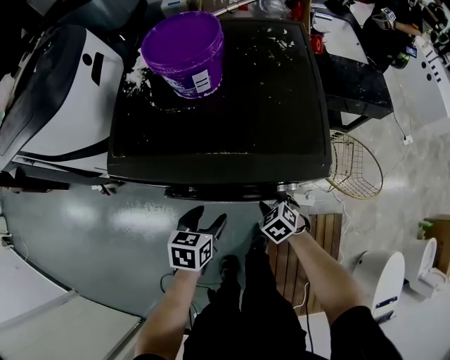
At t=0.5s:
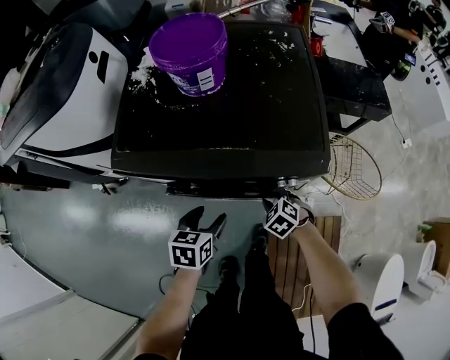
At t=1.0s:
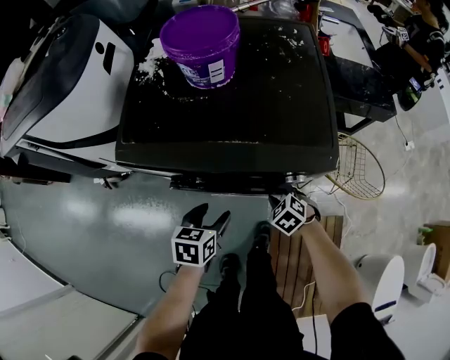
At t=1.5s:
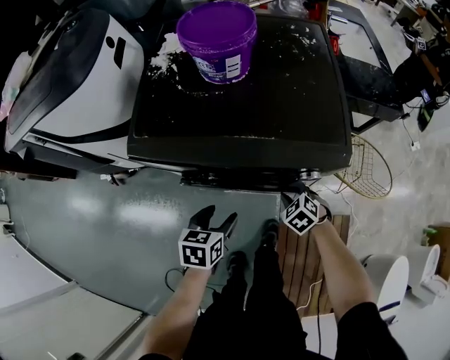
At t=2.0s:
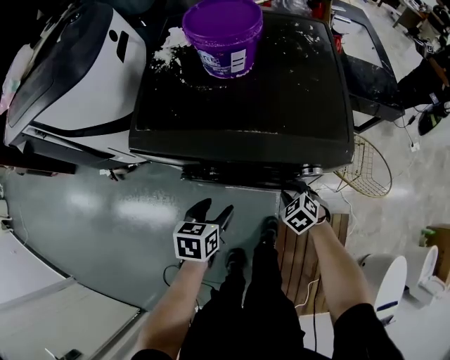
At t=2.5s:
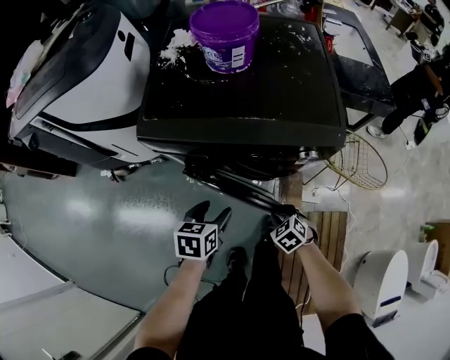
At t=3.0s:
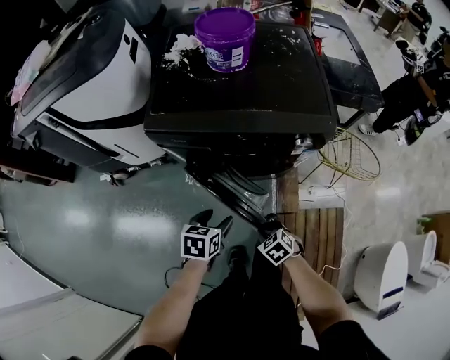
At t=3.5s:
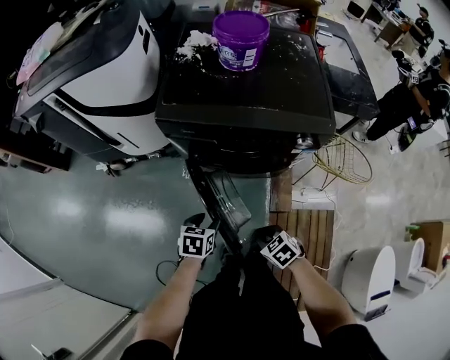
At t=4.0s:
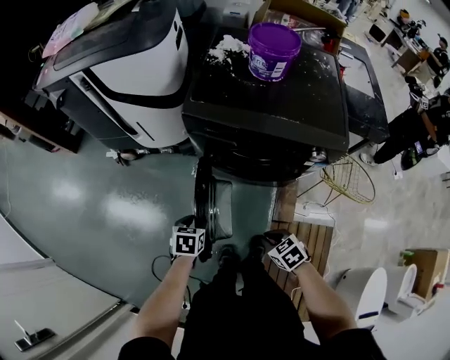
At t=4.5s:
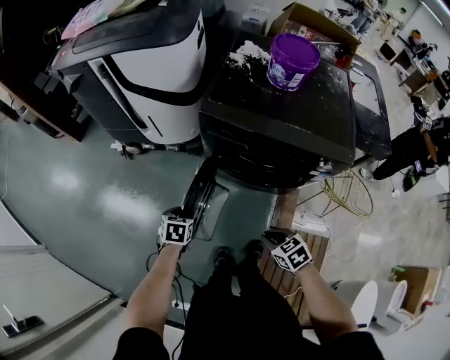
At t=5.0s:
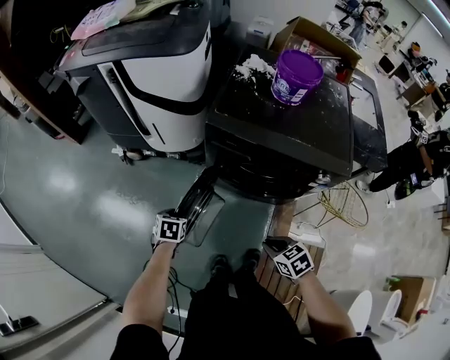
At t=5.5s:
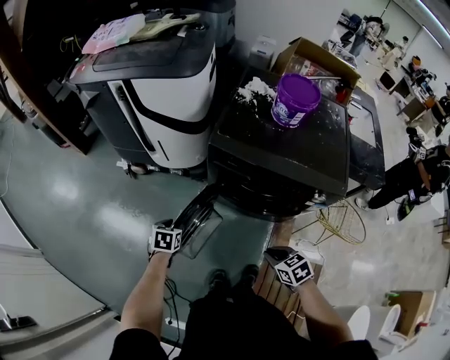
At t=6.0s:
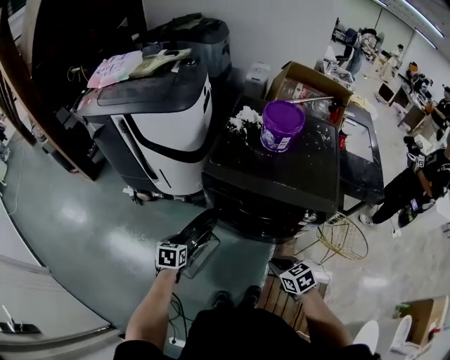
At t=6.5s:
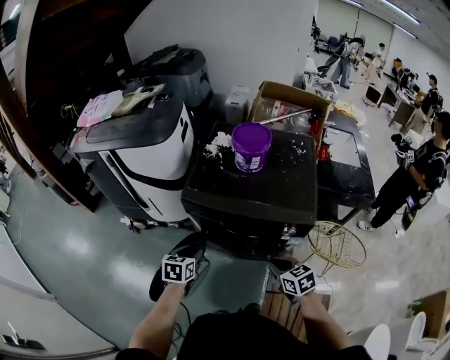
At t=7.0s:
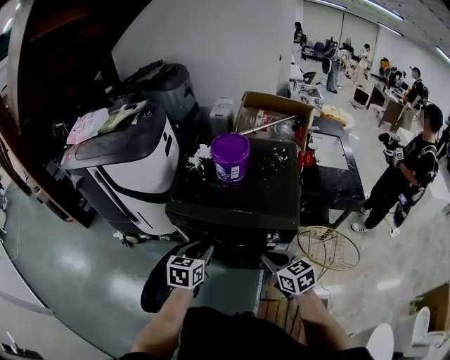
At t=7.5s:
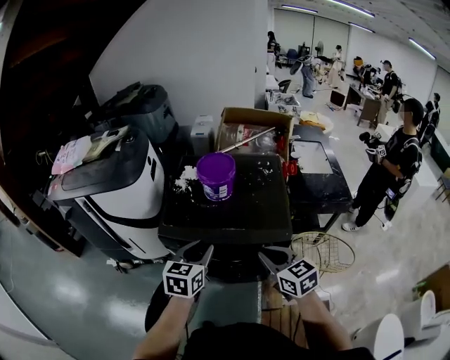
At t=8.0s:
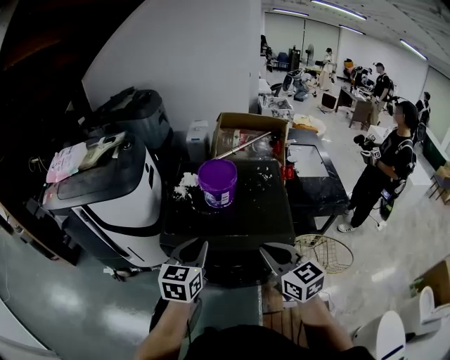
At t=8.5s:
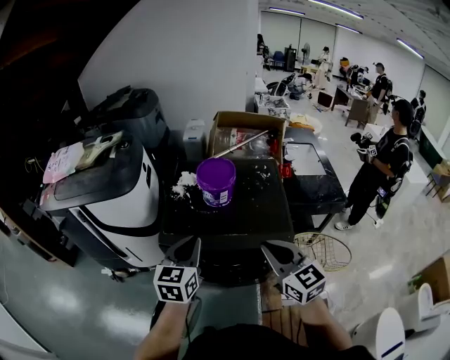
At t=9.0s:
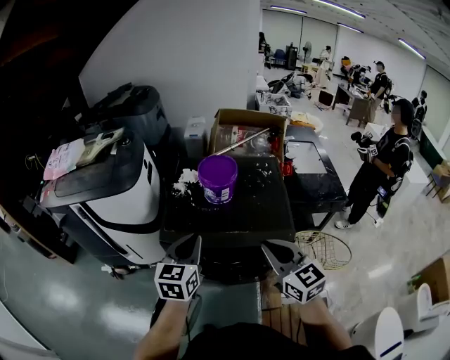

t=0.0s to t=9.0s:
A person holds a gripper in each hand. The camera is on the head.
t=0.0s to t=2.0s: The left gripper changes place by some 5 cm.
t=2.0s to t=4.5s: The right gripper ends up roughly 25 cm from where it was, and swivels roughly 20 degrees. The left gripper shifts by some 25 cm.
t=4.5s to t=7.0s: The right gripper goes roughly 30 cm upward, to the right and forward, and changes its angle by some 30 degrees; the left gripper is displaced to the right and upward by approximately 35 cm, and turns by roughly 30 degrees.
t=7.0s to t=9.0s: The left gripper goes about 15 cm upward and forward, and swivels some 20 degrees. Meanwhile the right gripper shifts about 15 cm upward, and rotates some 30 degrees.

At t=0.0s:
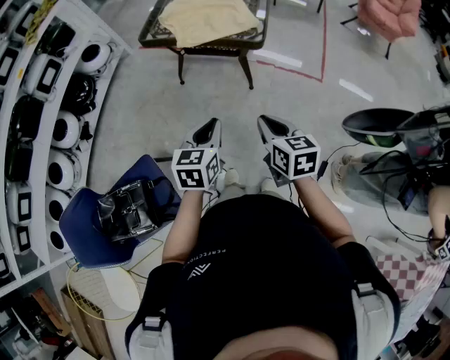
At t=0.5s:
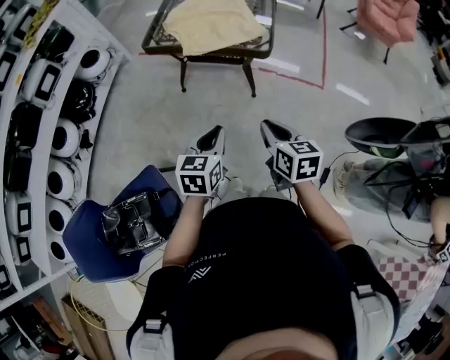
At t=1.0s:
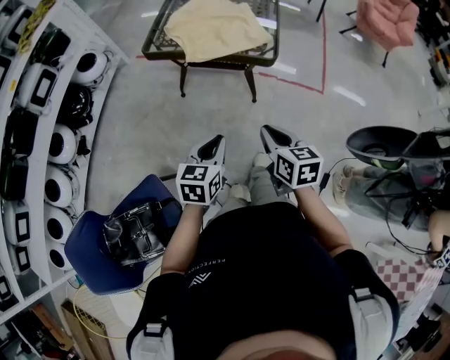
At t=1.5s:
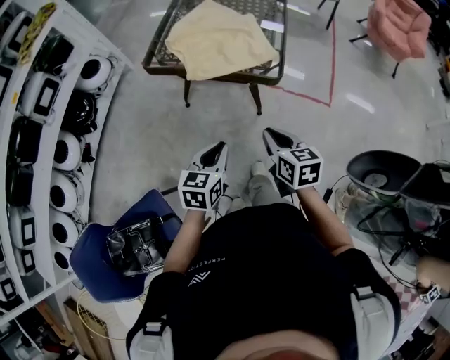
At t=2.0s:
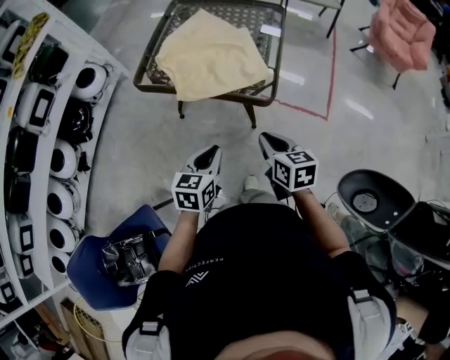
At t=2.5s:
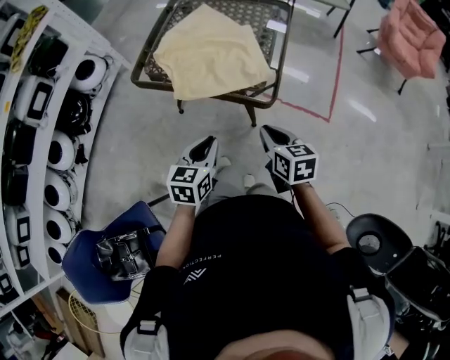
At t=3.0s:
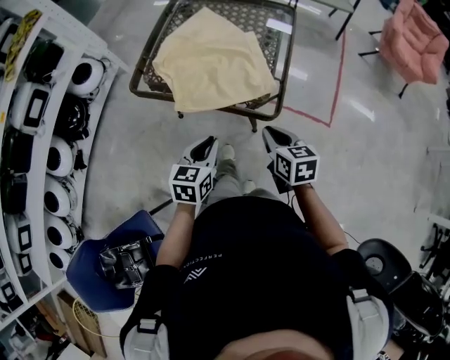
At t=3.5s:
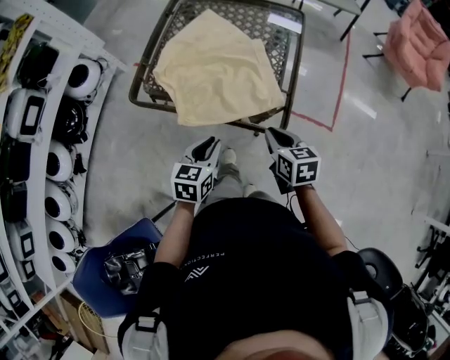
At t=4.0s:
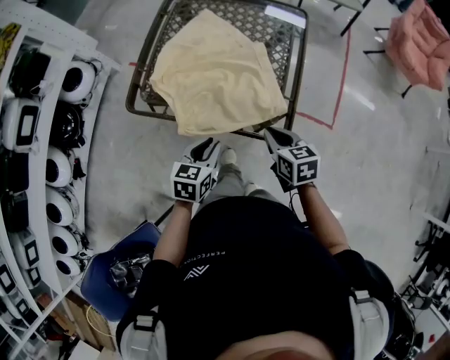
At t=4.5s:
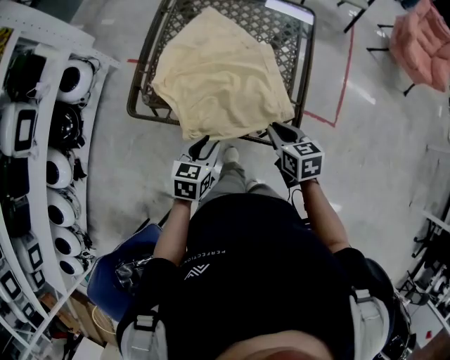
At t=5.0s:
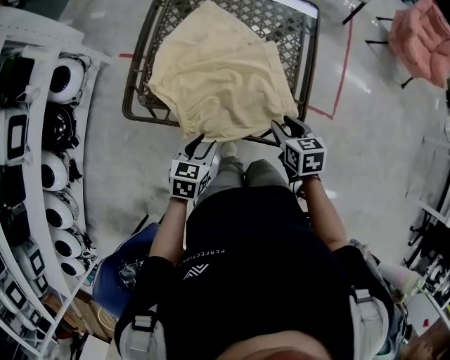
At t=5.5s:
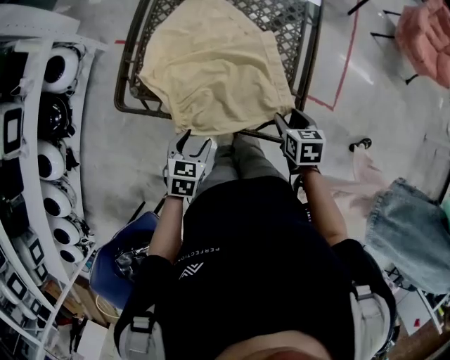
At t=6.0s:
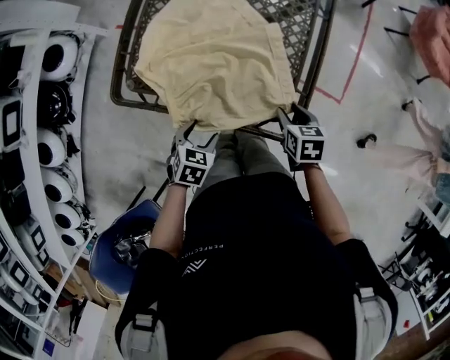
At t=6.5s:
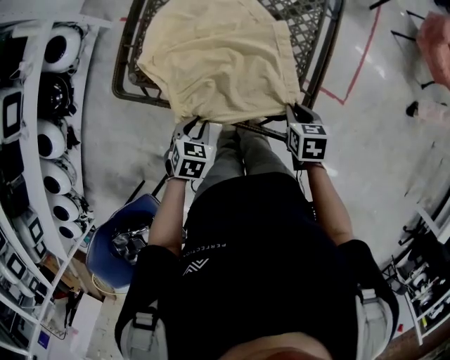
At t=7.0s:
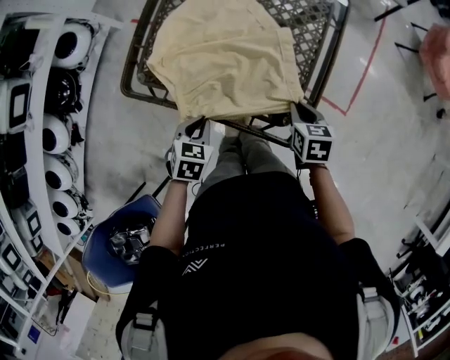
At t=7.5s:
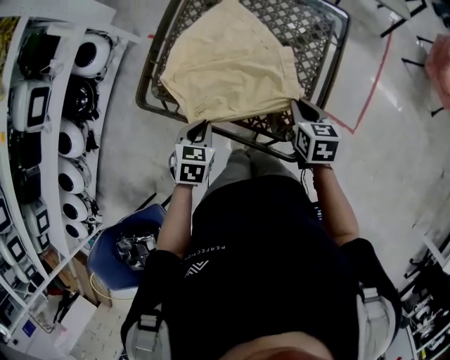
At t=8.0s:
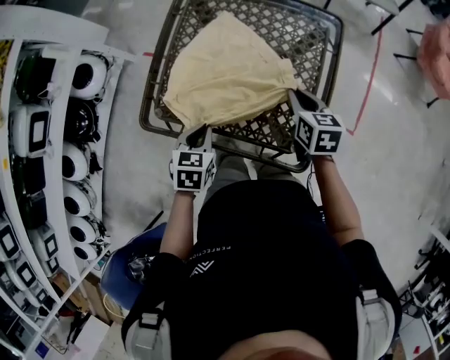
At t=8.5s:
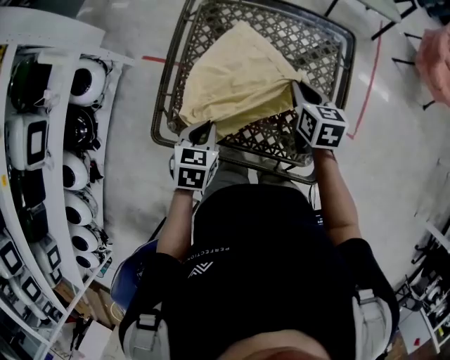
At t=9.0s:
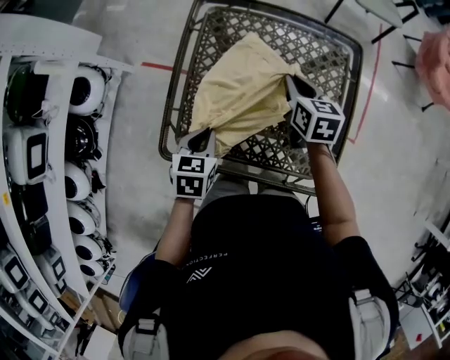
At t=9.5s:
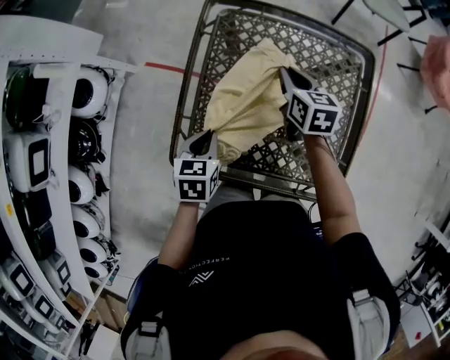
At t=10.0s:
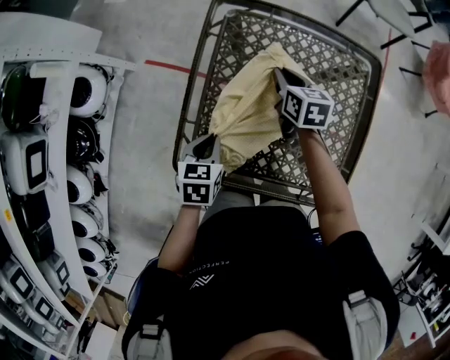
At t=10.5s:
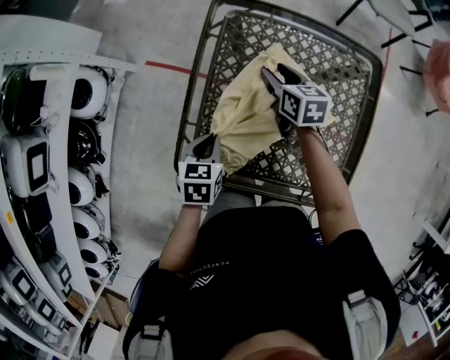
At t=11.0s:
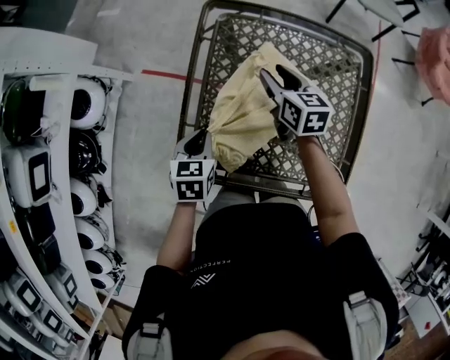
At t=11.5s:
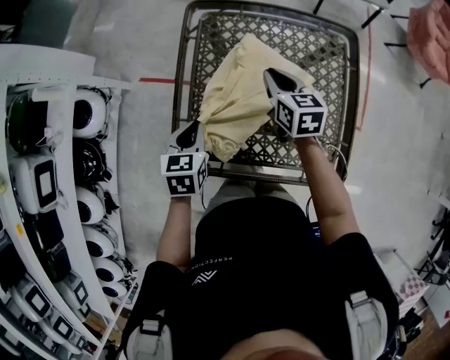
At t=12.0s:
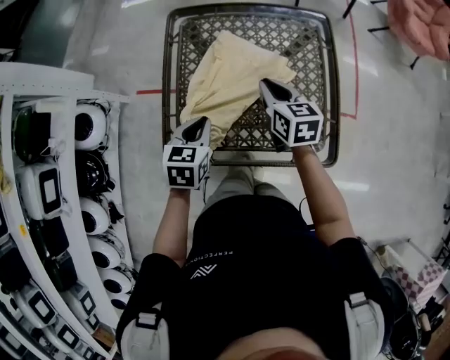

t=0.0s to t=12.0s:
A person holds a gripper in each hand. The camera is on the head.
t=0.0s to t=2.0s: Both grippers move forward, approximately 20 cm.
t=2.0s to t=4.0s: Both grippers travel together forward, roughly 20 cm.
t=4.0s to t=6.0s: The left gripper moves downward, about 10 cm, turns by some 30 degrees, and opens. The right gripper moves downward, forward and to the right, about 15 cm, and opens.
t=6.0s to t=8.0s: The two grippers go some 15 cm forward and upward. The right gripper closes; the left gripper closes.
t=8.0s to t=10.0s: The left gripper moves forward and to the left, some 20 cm, while the right gripper goes some 30 cm forward and to the left.
t=10.0s to t=12.0s: The left gripper travels upward and to the right by approximately 10 cm; the right gripper travels backward and upward by some 20 cm, and opens, then closes once more.

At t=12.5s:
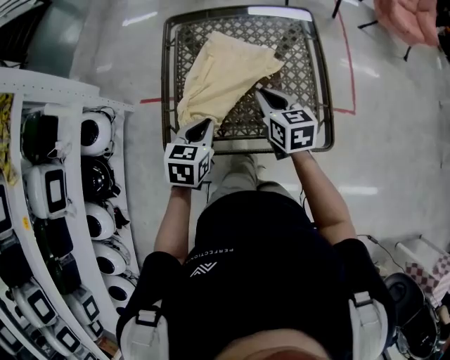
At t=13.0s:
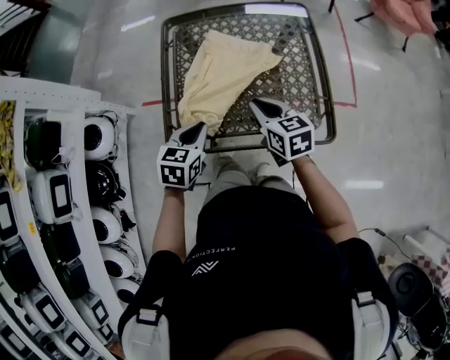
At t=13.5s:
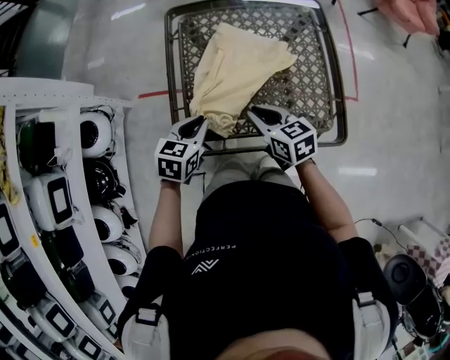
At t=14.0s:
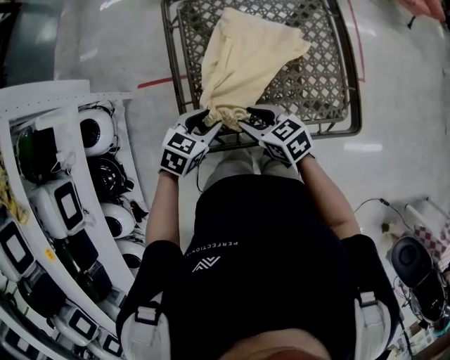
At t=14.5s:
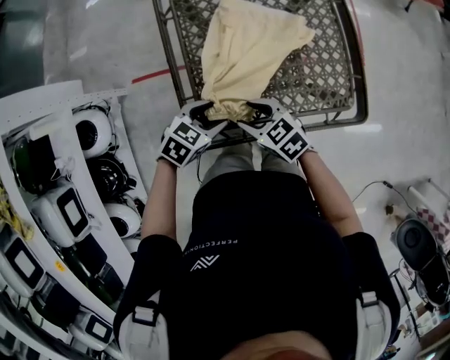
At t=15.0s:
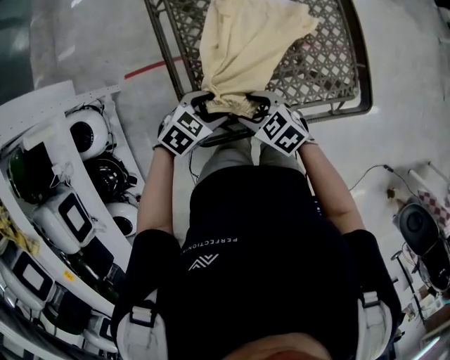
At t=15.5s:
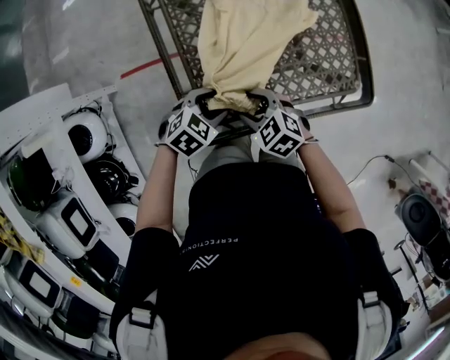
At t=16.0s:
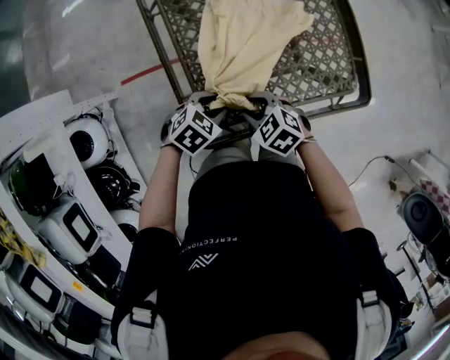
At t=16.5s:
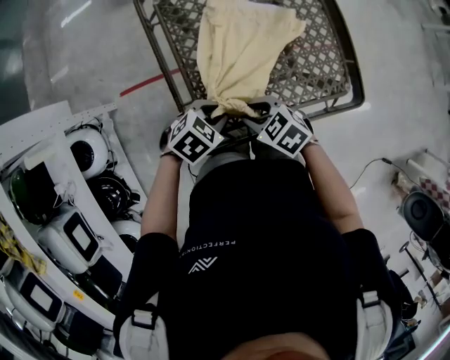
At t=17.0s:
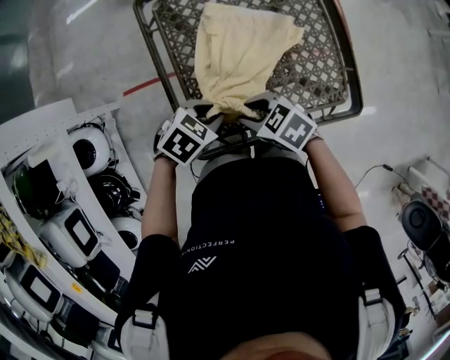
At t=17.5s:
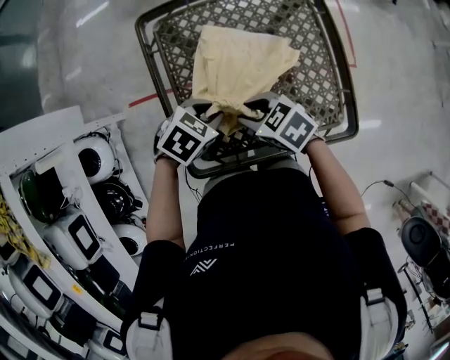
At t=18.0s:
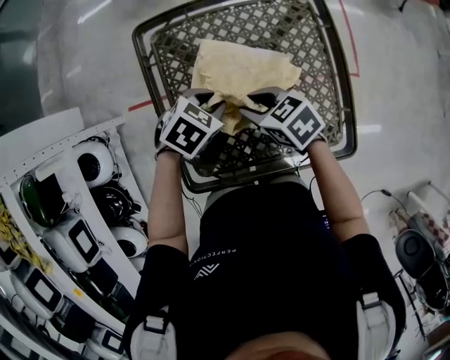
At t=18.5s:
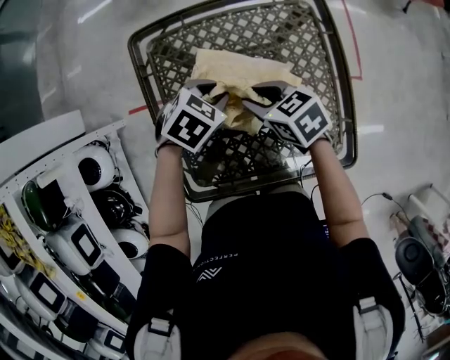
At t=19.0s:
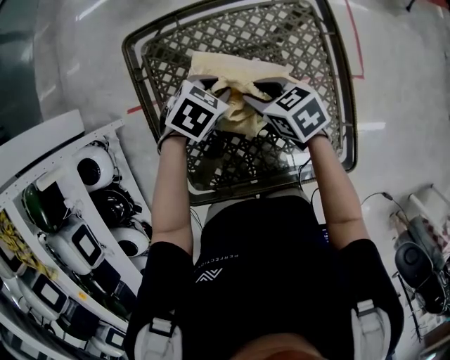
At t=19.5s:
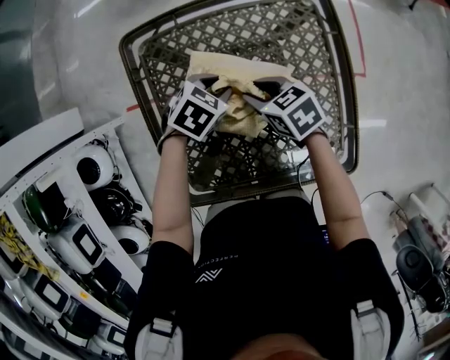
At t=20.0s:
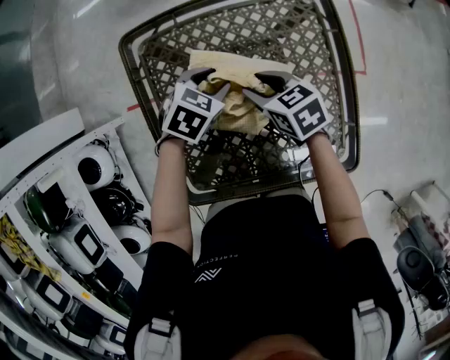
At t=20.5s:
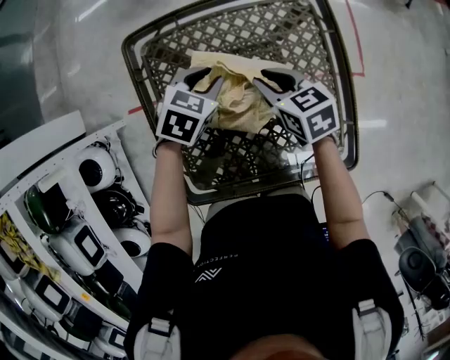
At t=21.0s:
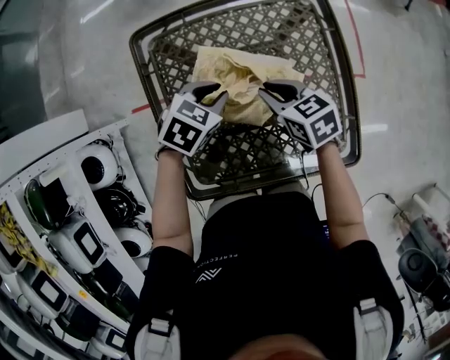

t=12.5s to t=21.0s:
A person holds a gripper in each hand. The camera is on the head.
t=12.5s to t=14.5s: The right gripper ends up about 20 cm from where it was, turns by some 30 degrees, and opens its fingers. The left gripper shifts some 10 cm downward, rotates about 40 degrees, and opens.
t=14.5s to t=16.5s: The left gripper closes.
t=16.5s to t=19.0s: The left gripper ends up approximately 30 cm from where it was. Meanwhile the right gripper changes place by roughly 25 cm.
t=19.0s to t=21.0s: The grippers make only small movements.
